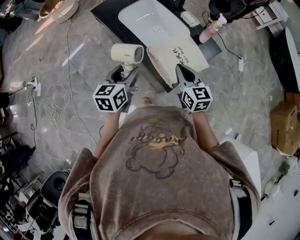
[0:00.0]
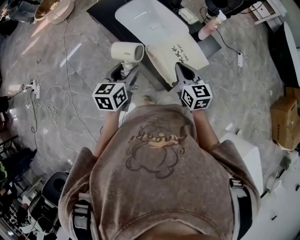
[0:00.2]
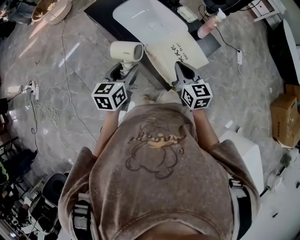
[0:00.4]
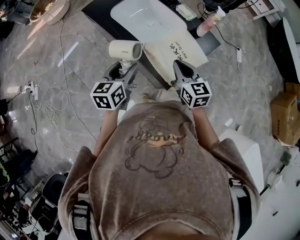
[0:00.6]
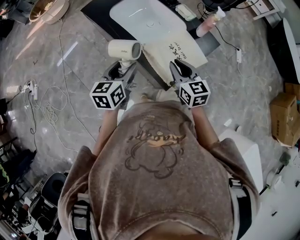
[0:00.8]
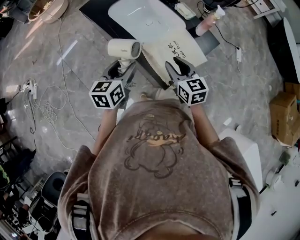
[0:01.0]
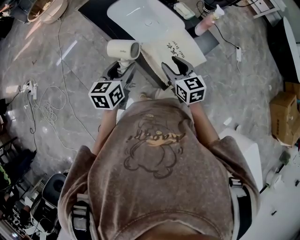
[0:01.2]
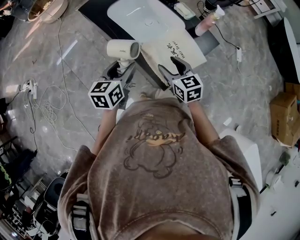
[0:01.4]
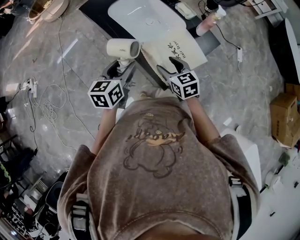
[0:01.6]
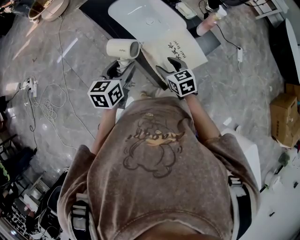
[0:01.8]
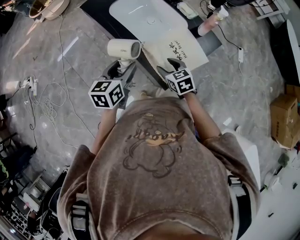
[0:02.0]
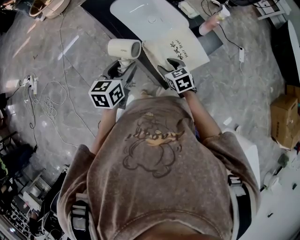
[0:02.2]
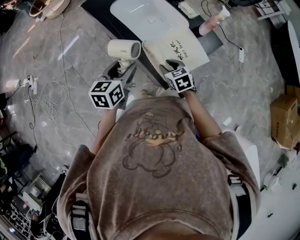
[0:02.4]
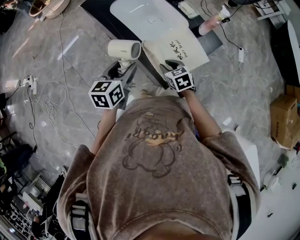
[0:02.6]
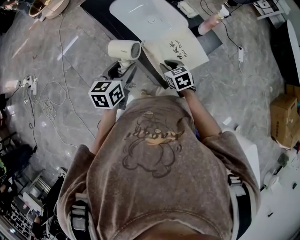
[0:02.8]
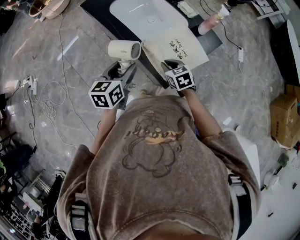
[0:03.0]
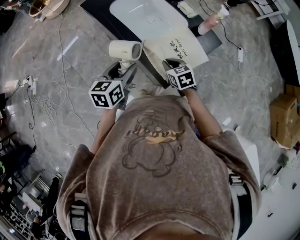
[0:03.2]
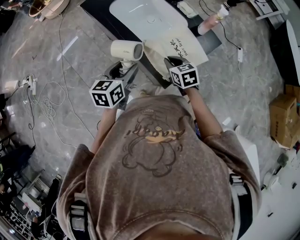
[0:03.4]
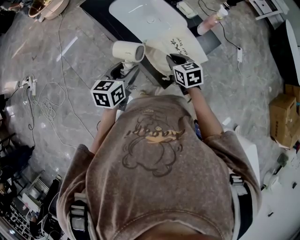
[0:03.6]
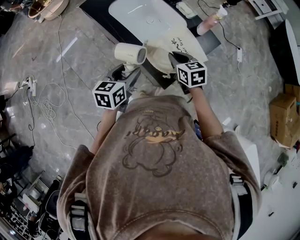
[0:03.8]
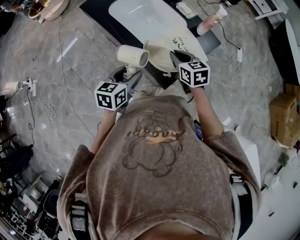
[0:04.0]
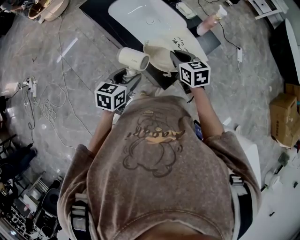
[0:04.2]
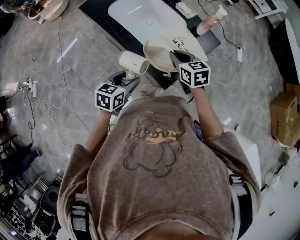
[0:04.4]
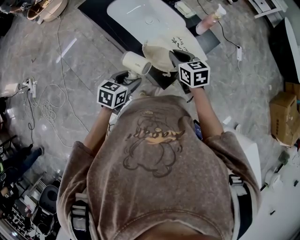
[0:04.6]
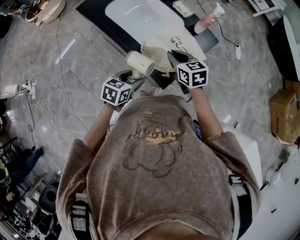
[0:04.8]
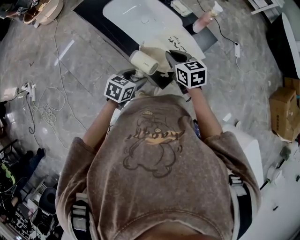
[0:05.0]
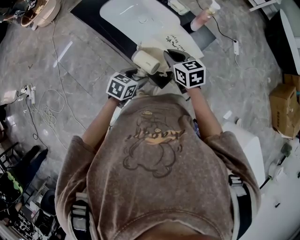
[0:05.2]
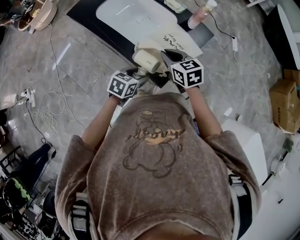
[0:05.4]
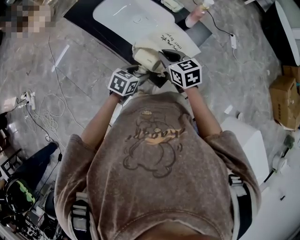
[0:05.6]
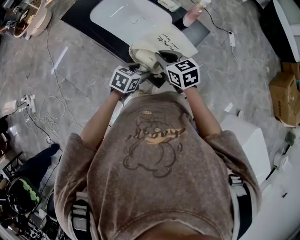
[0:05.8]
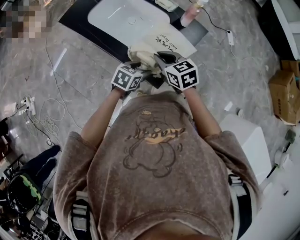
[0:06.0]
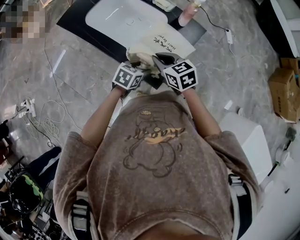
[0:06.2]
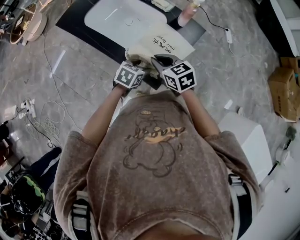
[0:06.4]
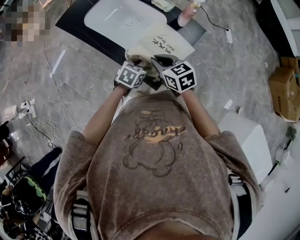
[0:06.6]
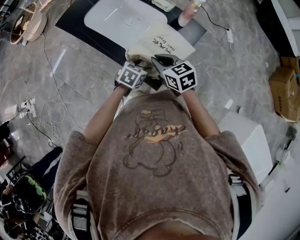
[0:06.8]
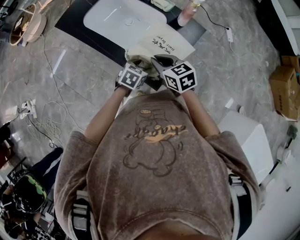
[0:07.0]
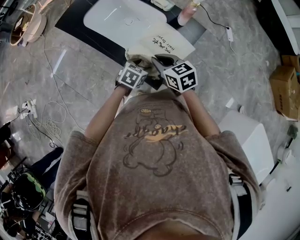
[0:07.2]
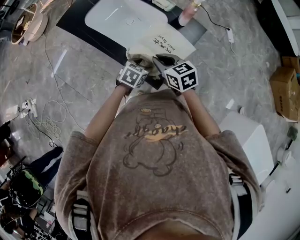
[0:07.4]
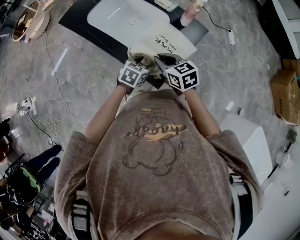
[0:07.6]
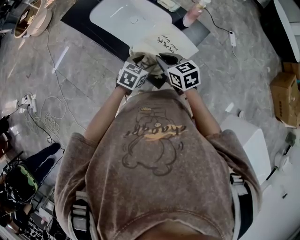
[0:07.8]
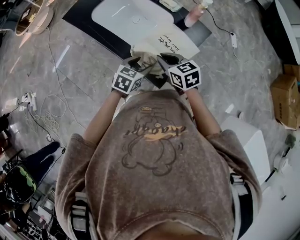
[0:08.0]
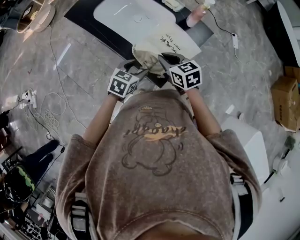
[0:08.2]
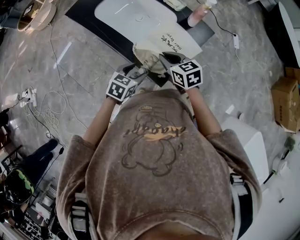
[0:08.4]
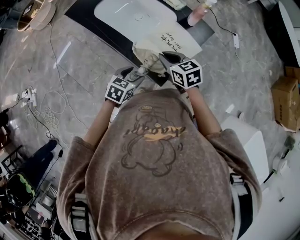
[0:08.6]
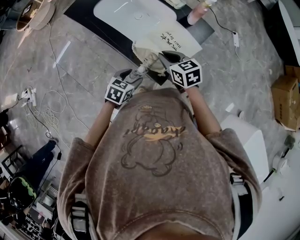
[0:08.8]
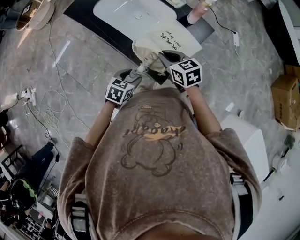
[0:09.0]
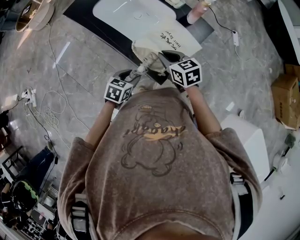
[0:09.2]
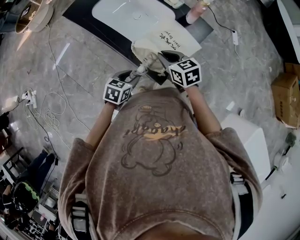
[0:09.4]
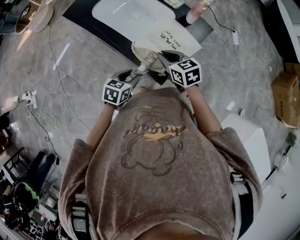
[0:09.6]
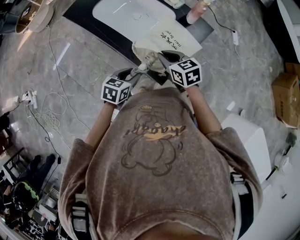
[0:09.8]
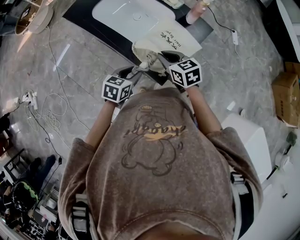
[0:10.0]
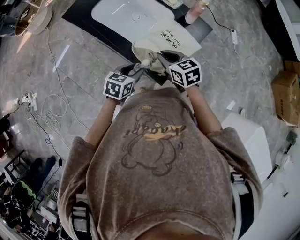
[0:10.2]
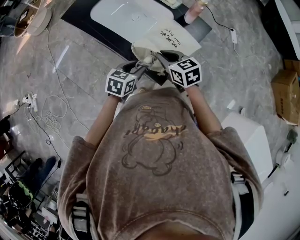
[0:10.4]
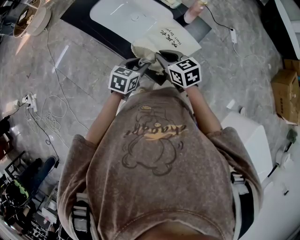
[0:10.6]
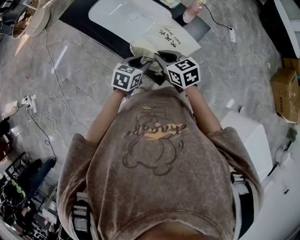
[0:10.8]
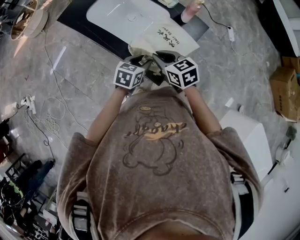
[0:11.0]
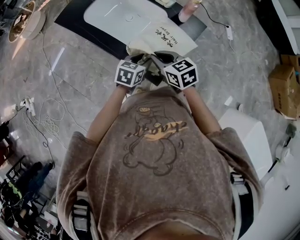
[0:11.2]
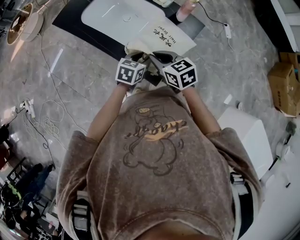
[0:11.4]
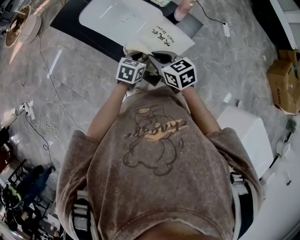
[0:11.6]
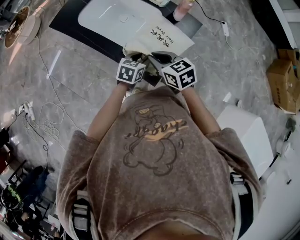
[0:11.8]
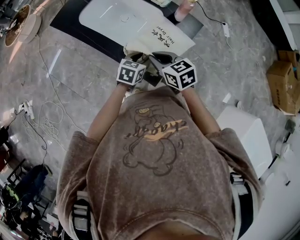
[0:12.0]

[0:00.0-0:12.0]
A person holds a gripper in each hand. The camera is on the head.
0:00.0 to 0:01.6: The right gripper heads downward, covering some 10 cm, and opens up.
0:01.6 to 0:03.0: The right gripper heads downward, covering approximately 5 cm, and closes its fingers.
0:03.0 to 0:04.4: The right gripper heads upward, covering approximately 10 cm. The left gripper goes about 5 cm downward, and changes its angle by approximately 20 degrees.
0:04.4 to 0:06.0: The left gripper is displaced to the right, downward and forward by roughly 15 cm, and turns by roughly 20 degrees.
0:06.0 to 0:07.6: There are only small adjustments of the grippers.
0:07.6 to 0:09.0: The left gripper heads backward and to the left, covering approximately 10 cm.
0:09.0 to 0:10.4: The left gripper shifts by roughly 5 cm.
0:10.4 to 0:12.0: The left gripper heads to the right and forward, covering about 10 cm.

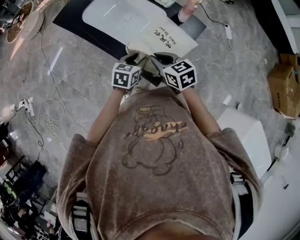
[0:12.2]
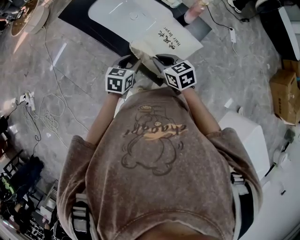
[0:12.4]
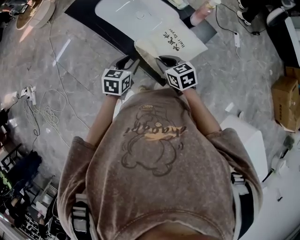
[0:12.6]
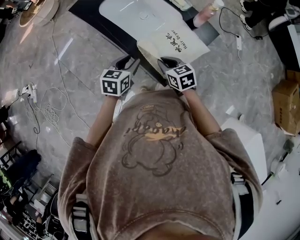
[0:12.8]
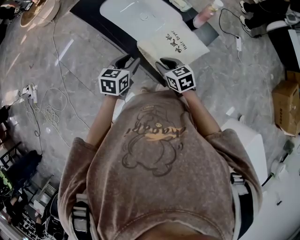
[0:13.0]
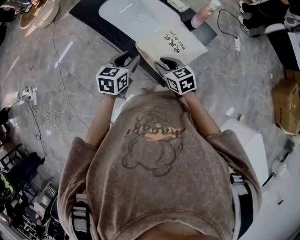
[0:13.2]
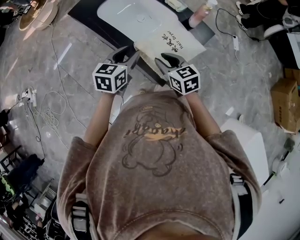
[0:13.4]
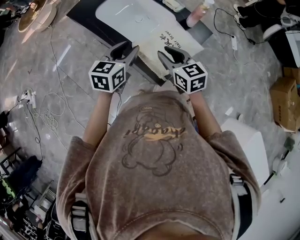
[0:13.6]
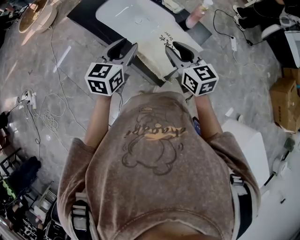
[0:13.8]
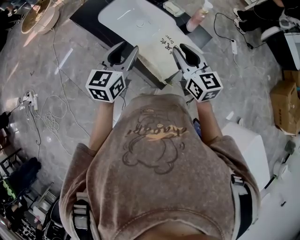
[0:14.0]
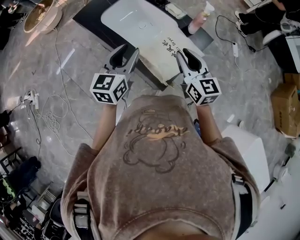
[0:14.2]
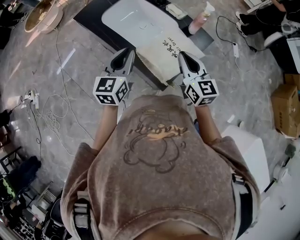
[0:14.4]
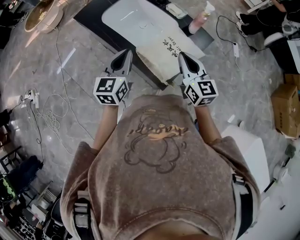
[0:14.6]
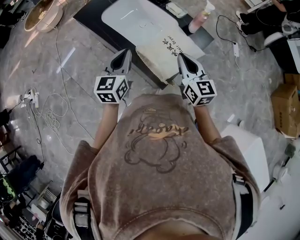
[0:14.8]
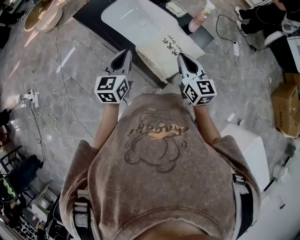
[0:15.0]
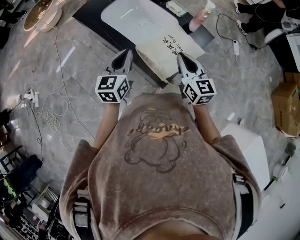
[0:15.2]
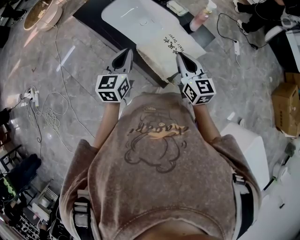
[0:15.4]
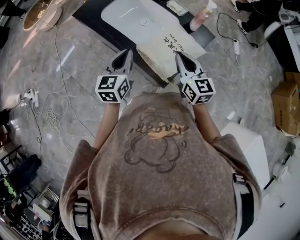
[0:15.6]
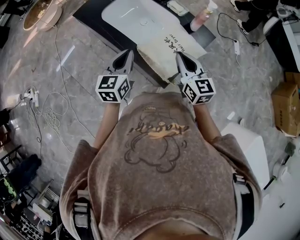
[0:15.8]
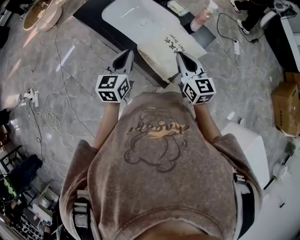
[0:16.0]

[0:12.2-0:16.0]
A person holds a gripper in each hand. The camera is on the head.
0:12.2 to 0:13.4: The left gripper goes approximately 10 cm upward and to the left. The right gripper opens up.
0:13.4 to 0:14.8: The right gripper shifts about 10 cm upward and to the right, rotates some 30 degrees, and closes its fingers. Meanwhile the left gripper travels upward by roughly 5 cm, and closes its fingers.
0:14.8 to 0:16.0: The grippers move only a little.

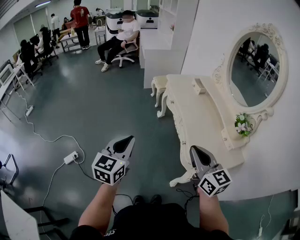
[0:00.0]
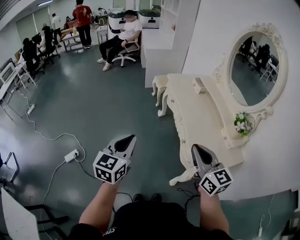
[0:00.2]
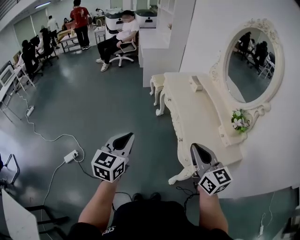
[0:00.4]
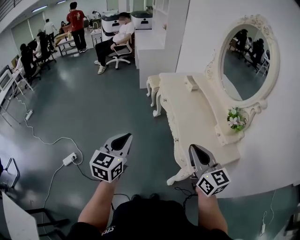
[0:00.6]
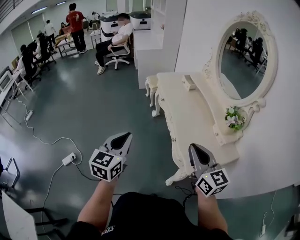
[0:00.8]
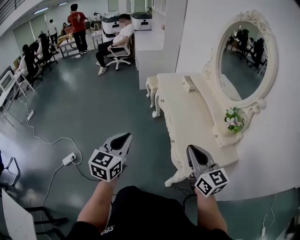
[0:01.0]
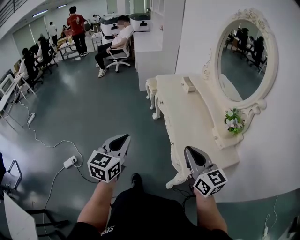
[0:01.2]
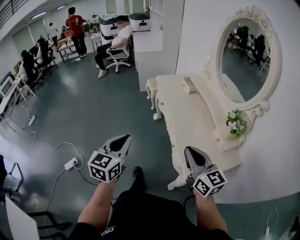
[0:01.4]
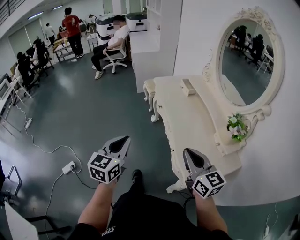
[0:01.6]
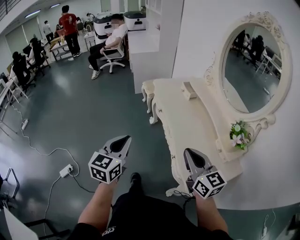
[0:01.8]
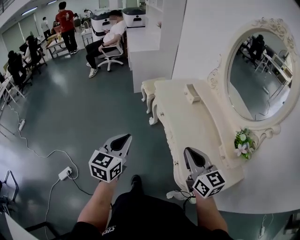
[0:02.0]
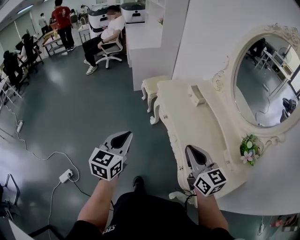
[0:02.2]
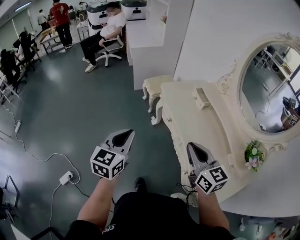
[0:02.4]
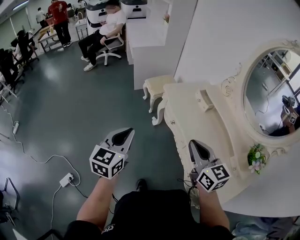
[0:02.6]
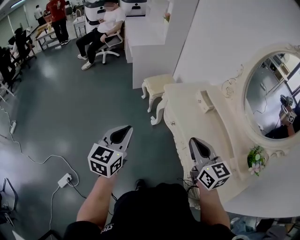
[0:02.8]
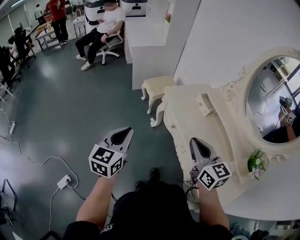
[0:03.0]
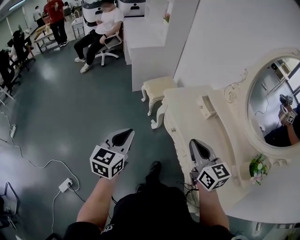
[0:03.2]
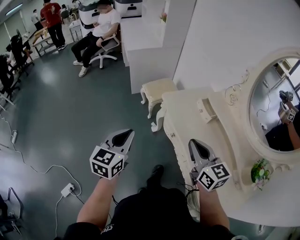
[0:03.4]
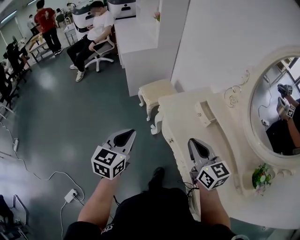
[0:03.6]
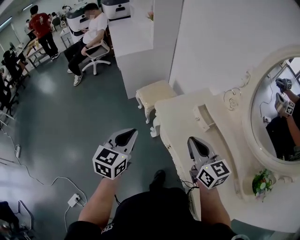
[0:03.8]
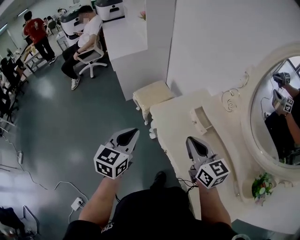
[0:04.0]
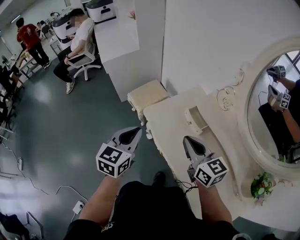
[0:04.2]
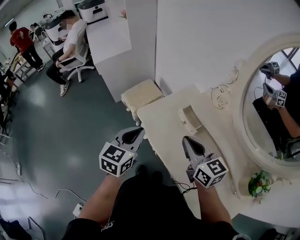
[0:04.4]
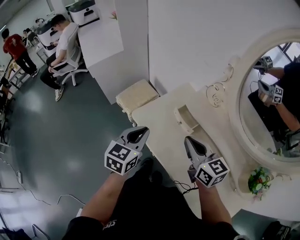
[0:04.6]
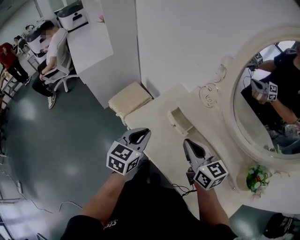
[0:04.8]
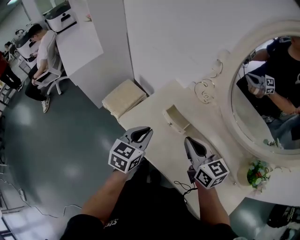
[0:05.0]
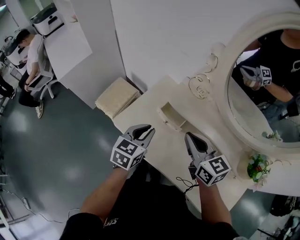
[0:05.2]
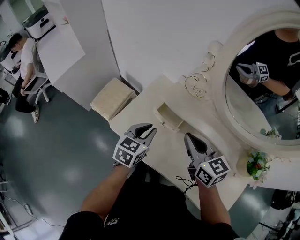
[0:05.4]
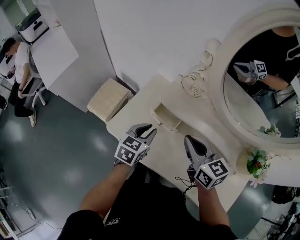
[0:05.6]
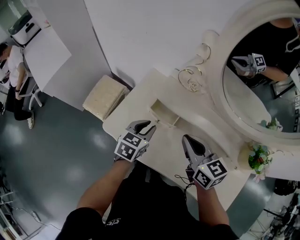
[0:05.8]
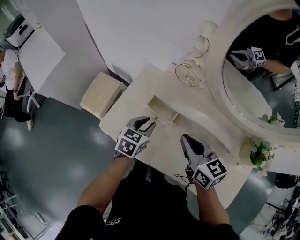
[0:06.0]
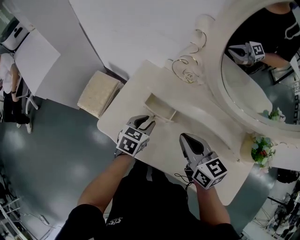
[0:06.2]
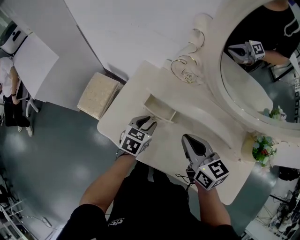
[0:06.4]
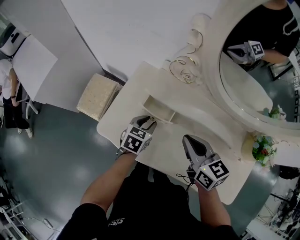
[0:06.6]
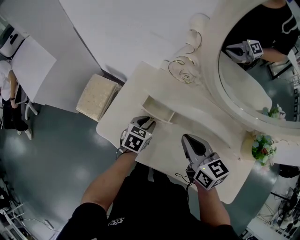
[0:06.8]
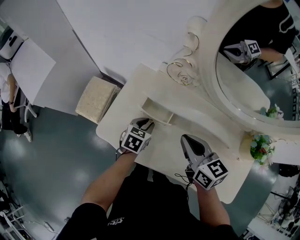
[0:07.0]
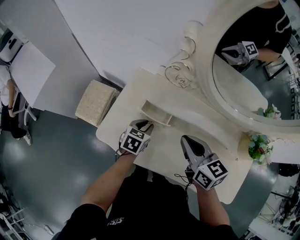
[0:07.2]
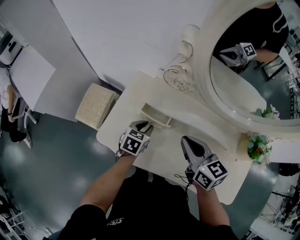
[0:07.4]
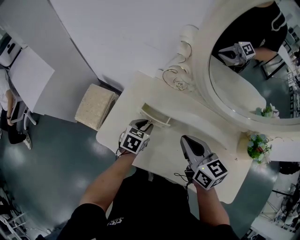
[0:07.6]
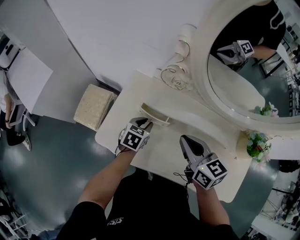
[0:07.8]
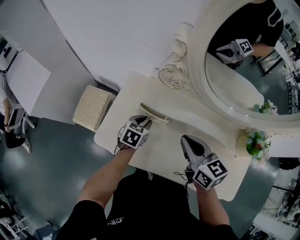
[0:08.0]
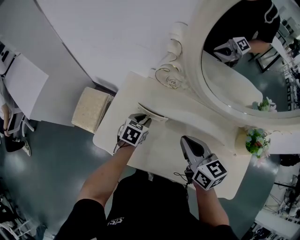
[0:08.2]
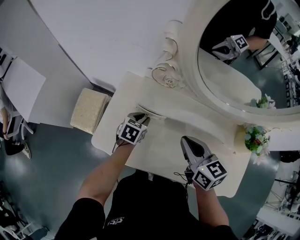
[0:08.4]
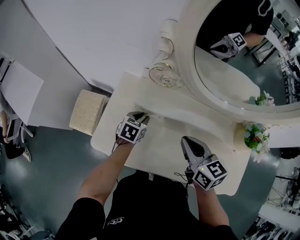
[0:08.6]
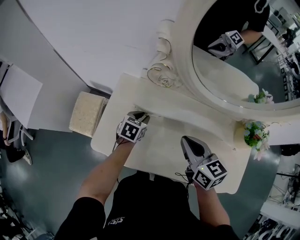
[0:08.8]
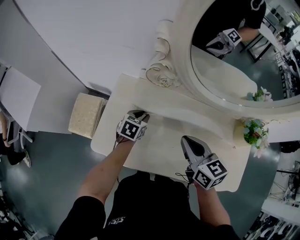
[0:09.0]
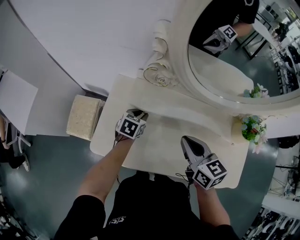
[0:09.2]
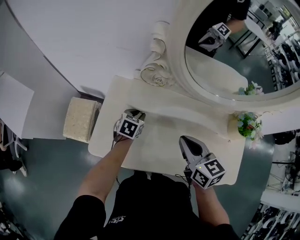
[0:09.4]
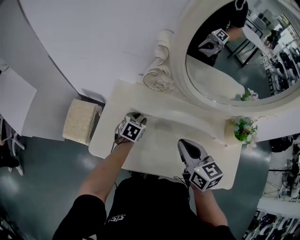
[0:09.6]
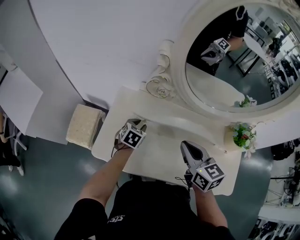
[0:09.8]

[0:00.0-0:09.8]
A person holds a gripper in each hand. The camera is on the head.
0:00.0 to 0:01.4: The grippers both shift to the right by approximately 10 cm.
0:01.4 to 0:02.8: The grippers both shift forward and to the left by approximately 35 cm.
0:02.8 to 0:04.2: The right gripper shifts about 25 cm forward; the left gripper goes roughly 35 cm forward and to the right.
0:04.2 to 0:05.6: The left gripper changes place by about 25 cm, and changes its angle by approximately 40 degrees. Meanwhile the right gripper changes place by approximately 15 cm, and swivels some 30 degrees.
0:05.6 to 0:07.0: The left gripper travels downward by approximately 10 cm.
0:07.0 to 0:08.4: The left gripper goes approximately 5 cm forward.
0:08.4 to 0:09.8: There are only small adjustments of the grippers.
